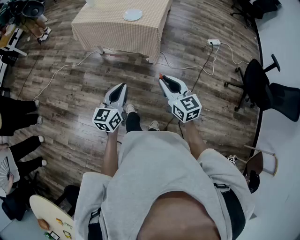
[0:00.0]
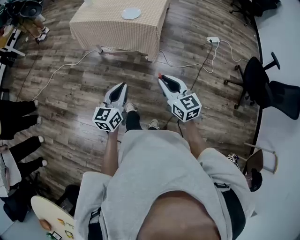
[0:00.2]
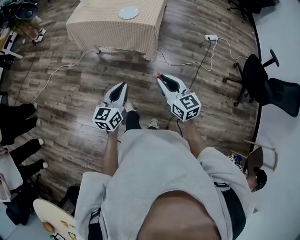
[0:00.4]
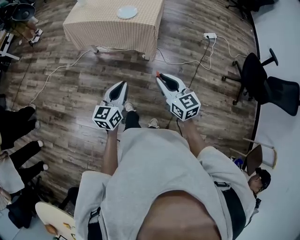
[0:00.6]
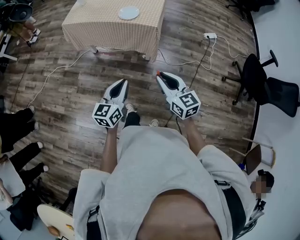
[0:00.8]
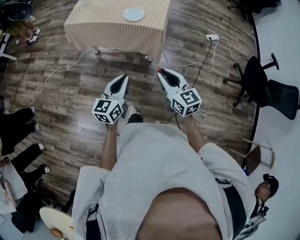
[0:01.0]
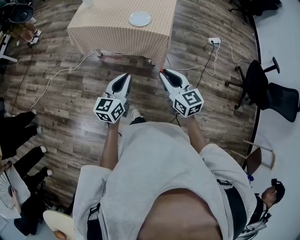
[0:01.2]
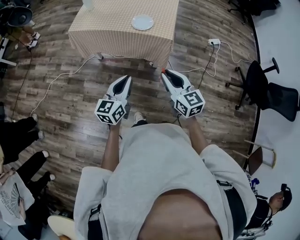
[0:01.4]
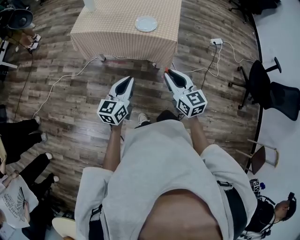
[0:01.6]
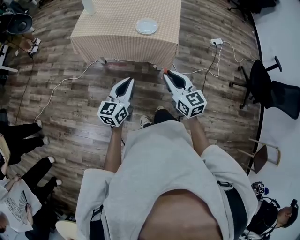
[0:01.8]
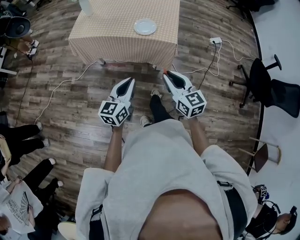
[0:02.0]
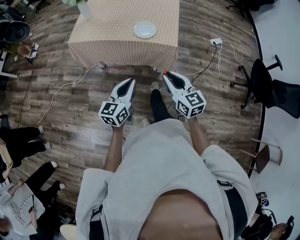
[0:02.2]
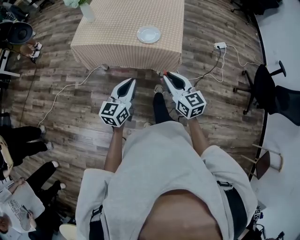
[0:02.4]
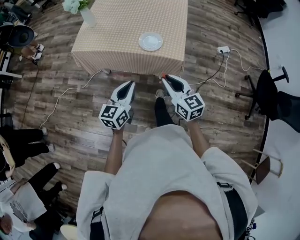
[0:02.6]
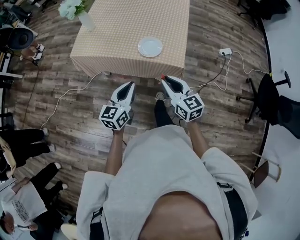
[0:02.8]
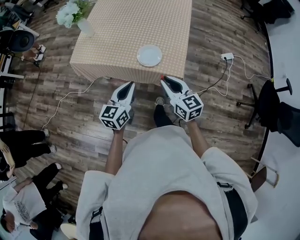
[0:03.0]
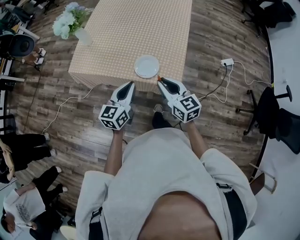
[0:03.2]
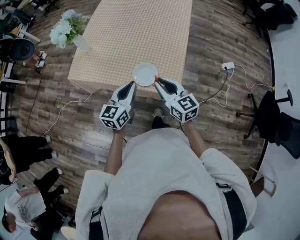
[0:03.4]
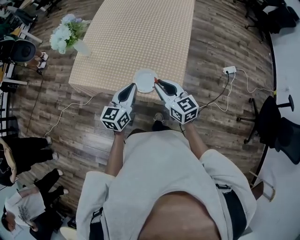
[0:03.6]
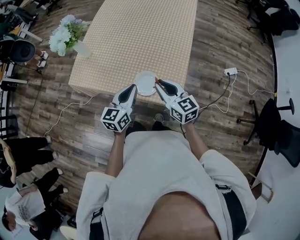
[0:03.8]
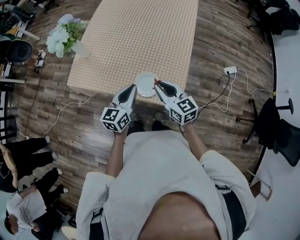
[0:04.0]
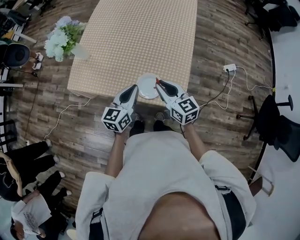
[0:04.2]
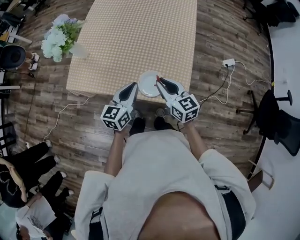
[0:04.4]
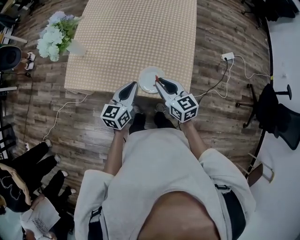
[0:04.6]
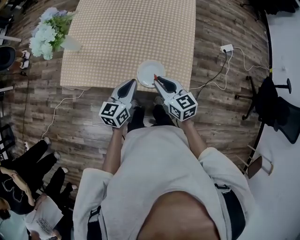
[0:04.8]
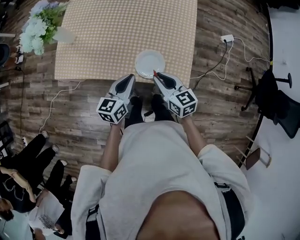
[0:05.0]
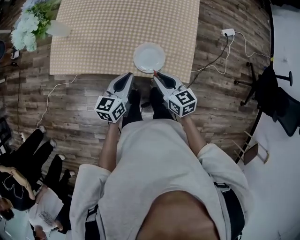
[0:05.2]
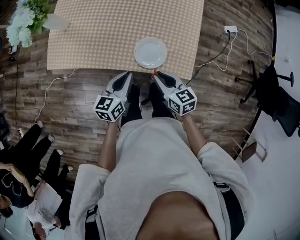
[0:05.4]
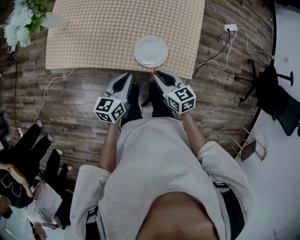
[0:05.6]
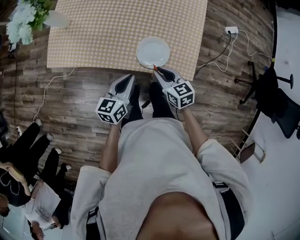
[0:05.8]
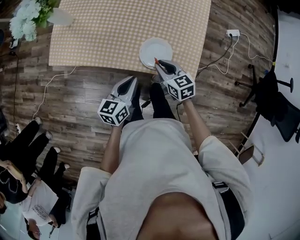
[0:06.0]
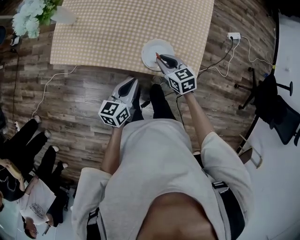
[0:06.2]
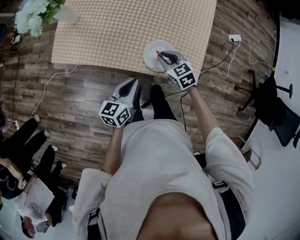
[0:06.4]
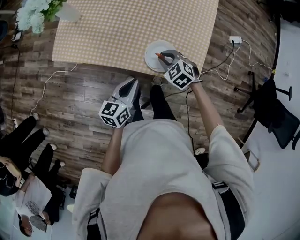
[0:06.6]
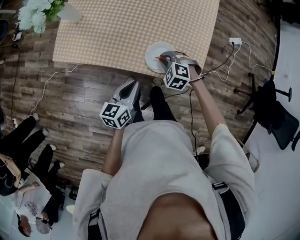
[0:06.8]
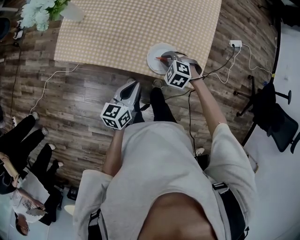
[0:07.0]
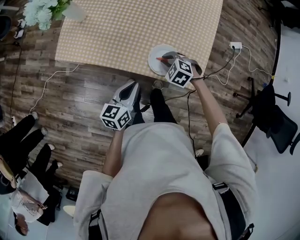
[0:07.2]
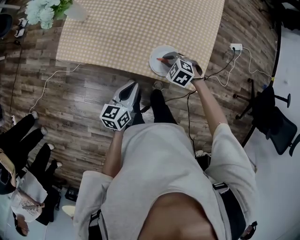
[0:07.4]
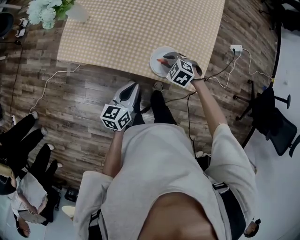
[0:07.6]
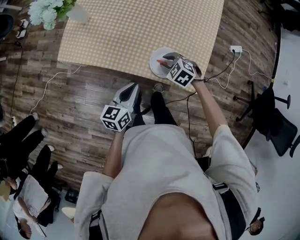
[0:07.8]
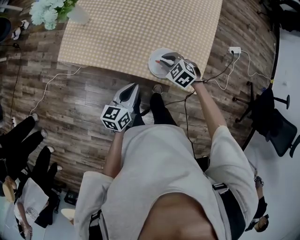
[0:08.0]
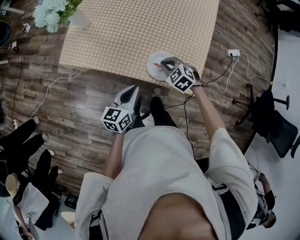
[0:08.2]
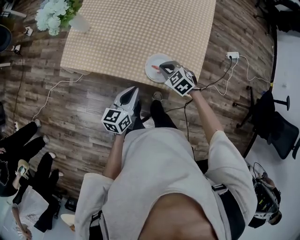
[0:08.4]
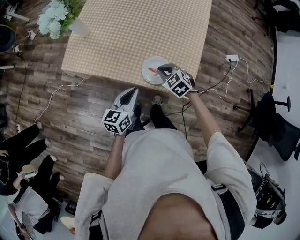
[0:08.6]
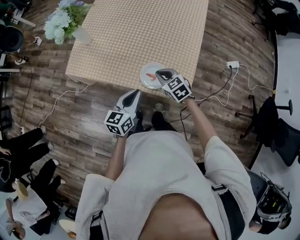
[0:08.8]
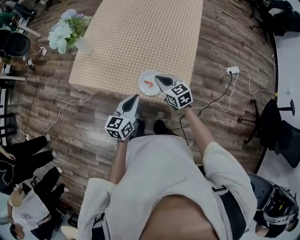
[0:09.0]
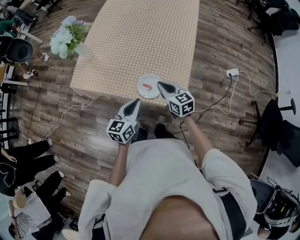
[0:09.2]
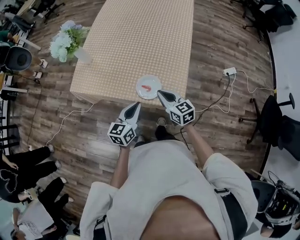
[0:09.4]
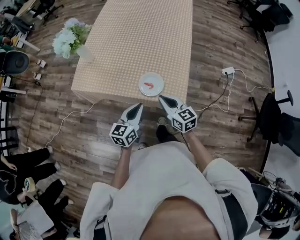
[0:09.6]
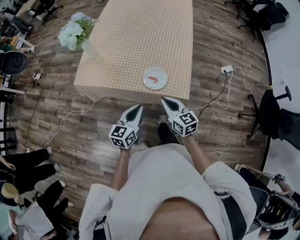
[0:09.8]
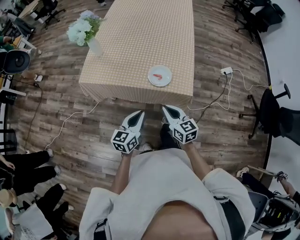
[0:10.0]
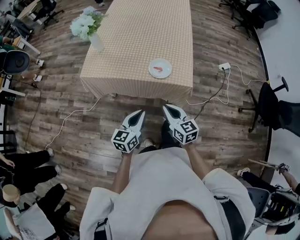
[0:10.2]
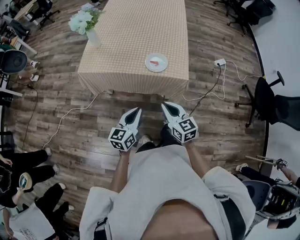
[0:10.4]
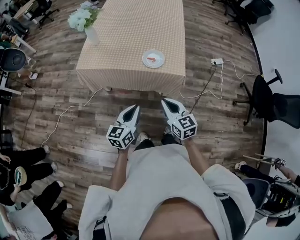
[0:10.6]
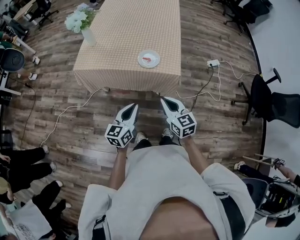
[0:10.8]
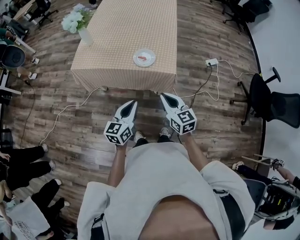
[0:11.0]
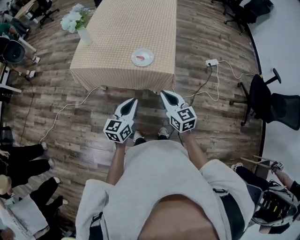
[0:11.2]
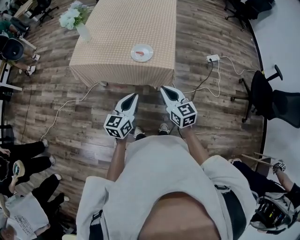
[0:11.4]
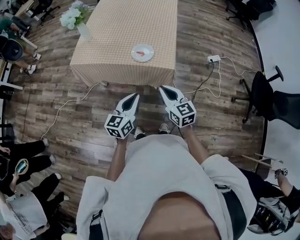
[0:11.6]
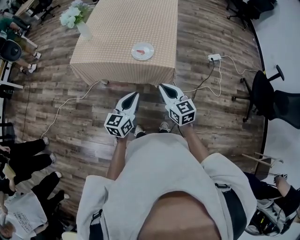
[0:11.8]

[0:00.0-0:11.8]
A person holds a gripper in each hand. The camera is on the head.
0:00.0 to 0:01.4: Both grippers move forward and to the left, approximately 20 cm.
0:01.4 to 0:03.0: Both grippers travel together forward, some 25 cm.
0:03.0 to 0:04.4: The two grippers go roughly 20 cm forward.
0:04.4 to 0:06.0: The right gripper travels downward by about 15 cm, and changes its angle by some 20 degrees; the left gripper is displaced downward and backward by about 15 cm.
0:06.0 to 0:07.4: The right gripper ends up about 5 cm from where it was, and rolls counterclockwise, seen from behind, by approximately 50 degrees.
0:07.4 to 0:08.8: The left gripper shifts approximately 10 cm upward and to the right, while the right gripper travels upward by some 10 cm, and turns by some 30 degrees.
0:08.8 to 0:10.4: The grippers both shift backward by roughly 30 cm. The right gripper changes its angle by about 40 degrees.
0:10.4 to 0:11.8: The two grippers go approximately 10 cm to the right.

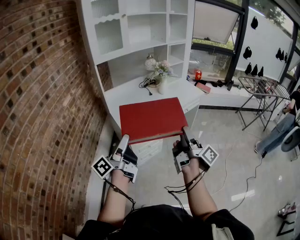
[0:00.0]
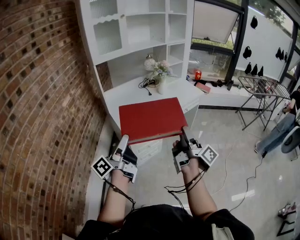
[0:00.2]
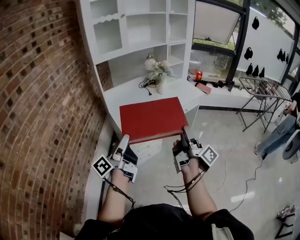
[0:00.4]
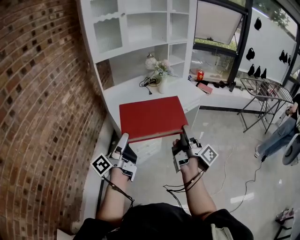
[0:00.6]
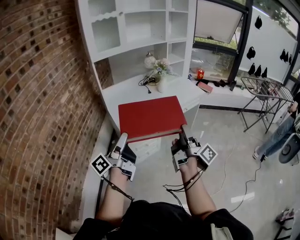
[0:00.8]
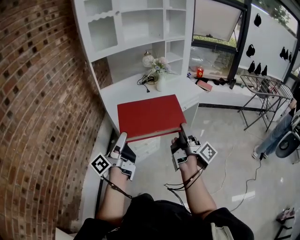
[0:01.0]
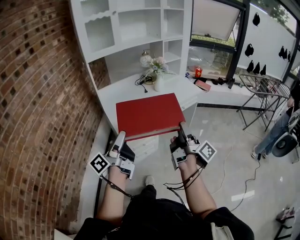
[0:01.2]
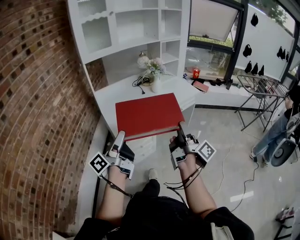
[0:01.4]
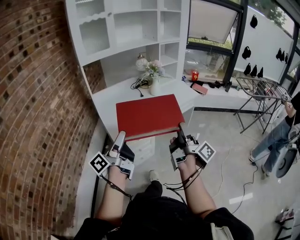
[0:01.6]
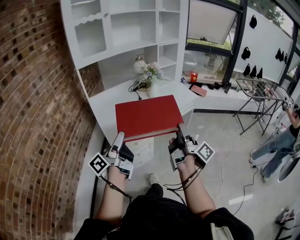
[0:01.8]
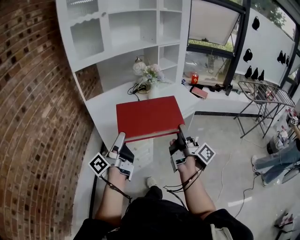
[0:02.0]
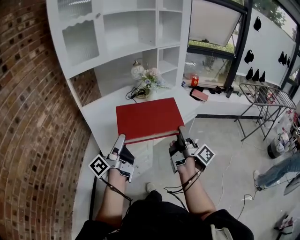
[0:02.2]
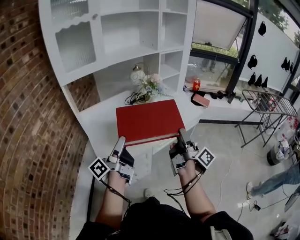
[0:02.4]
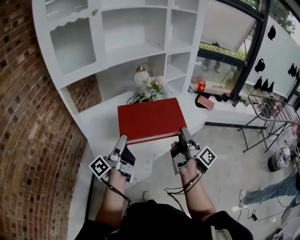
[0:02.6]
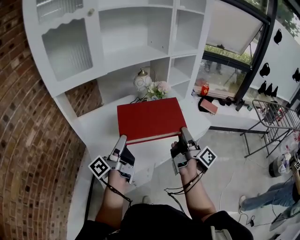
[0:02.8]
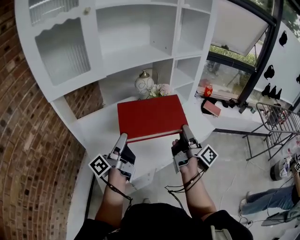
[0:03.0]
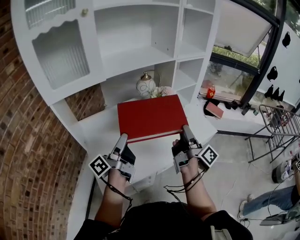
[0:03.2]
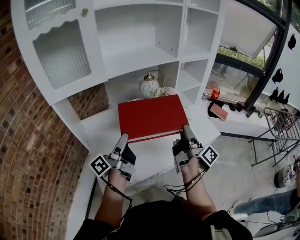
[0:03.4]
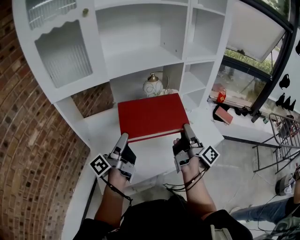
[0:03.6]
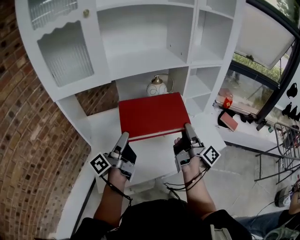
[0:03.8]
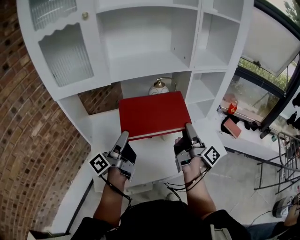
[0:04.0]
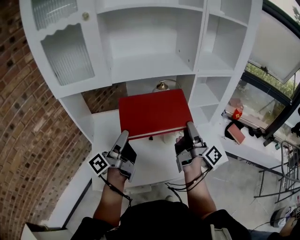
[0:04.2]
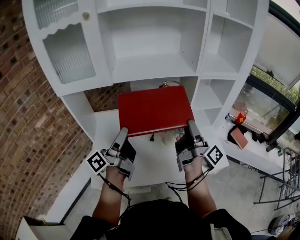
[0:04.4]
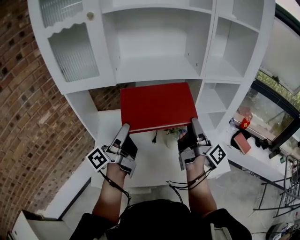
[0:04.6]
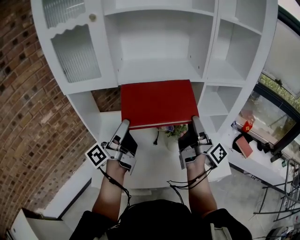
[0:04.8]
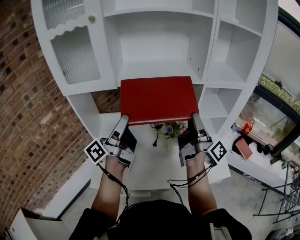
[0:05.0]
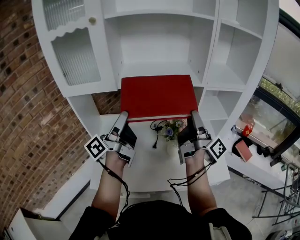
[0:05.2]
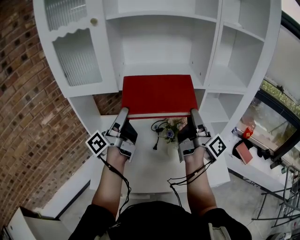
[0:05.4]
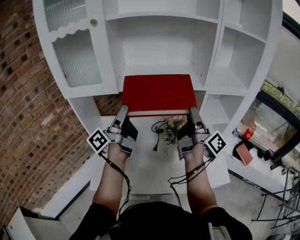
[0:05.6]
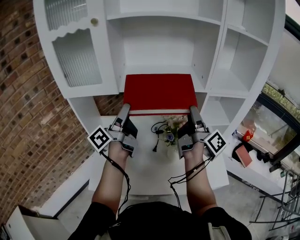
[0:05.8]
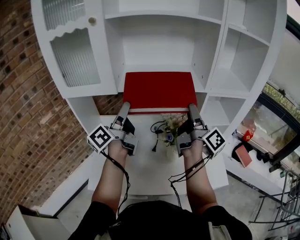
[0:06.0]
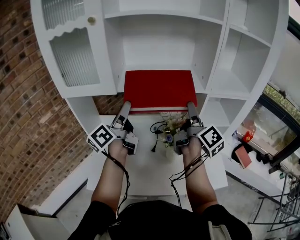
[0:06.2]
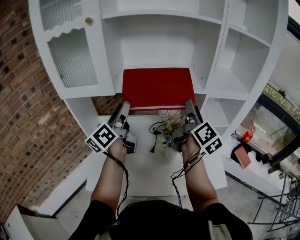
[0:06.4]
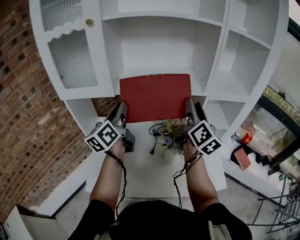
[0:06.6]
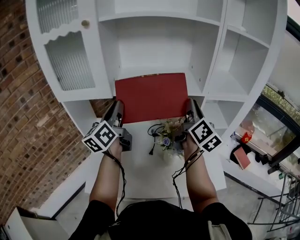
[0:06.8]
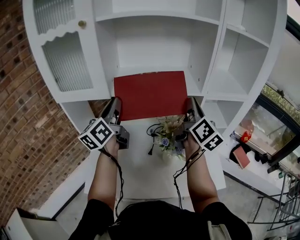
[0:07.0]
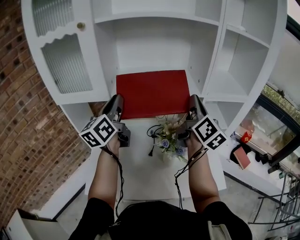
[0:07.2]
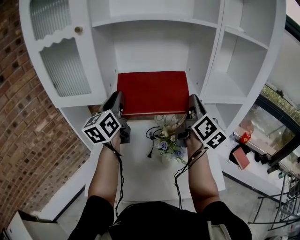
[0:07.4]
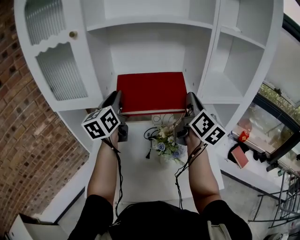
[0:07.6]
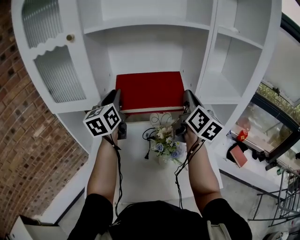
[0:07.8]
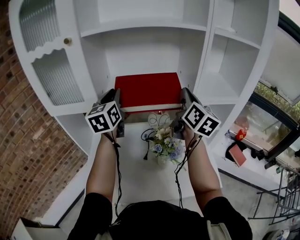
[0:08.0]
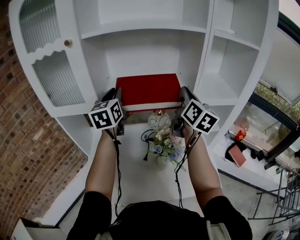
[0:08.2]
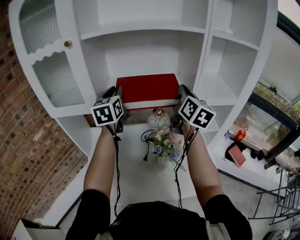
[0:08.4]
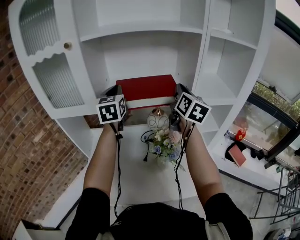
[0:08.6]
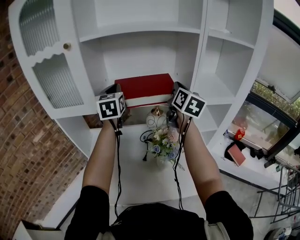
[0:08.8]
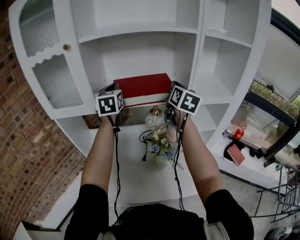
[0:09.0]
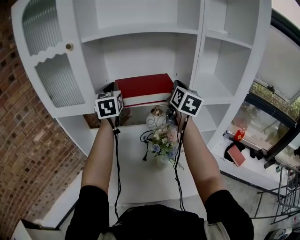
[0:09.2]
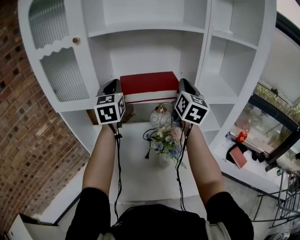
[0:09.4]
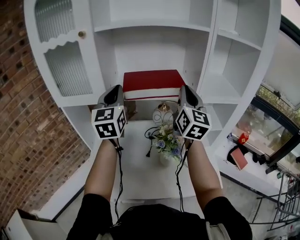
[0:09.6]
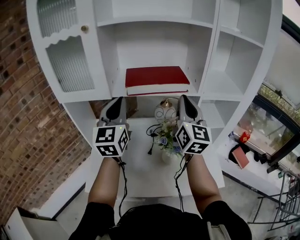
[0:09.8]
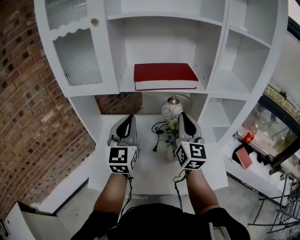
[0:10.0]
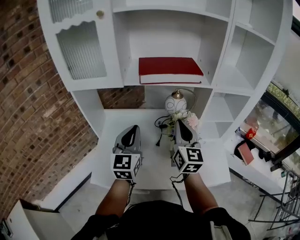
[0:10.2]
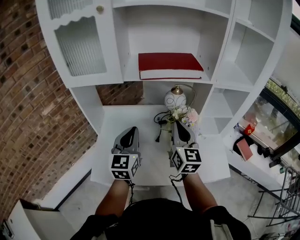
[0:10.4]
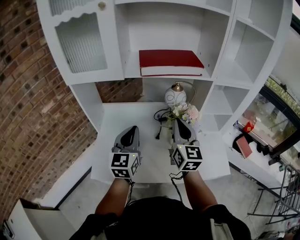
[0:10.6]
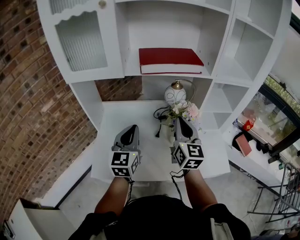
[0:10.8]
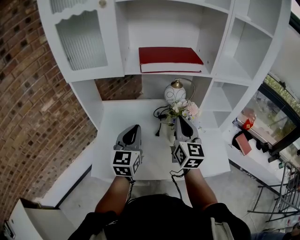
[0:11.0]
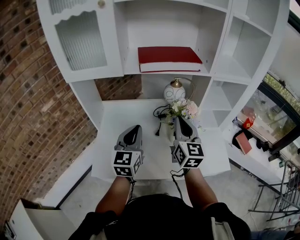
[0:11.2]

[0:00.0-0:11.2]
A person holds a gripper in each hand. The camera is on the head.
0:00.0 to 0:01.6: Both grippers move to the right and forward, roughly 10 cm.
0:01.6 to 0:03.2: Both grippers are carried forward, some 50 cm.
0:03.2 to 0:04.8: The right gripper moves forward and upward, roughly 20 cm, and turns by roughly 30 degrees, while the left gripper is displaced upward and forward by some 10 cm, and turns by roughly 30 degrees.
0:04.8 to 0:06.4: The right gripper goes approximately 10 cm forward and upward, and rotates roughly 40 degrees. The left gripper is displaced forward by approximately 10 cm, and turns by approximately 30 degrees.
0:06.4 to 0:08.0: The left gripper moves forward and upward, roughly 10 cm, turns by approximately 40 degrees, and closes. The right gripper moves upward and forward, some 10 cm, turns by some 20 degrees, and closes up.
0:08.0 to 0:09.6: The left gripper travels backward by some 5 cm, while the right gripper swivels approximately 20 degrees.
0:09.6 to 0:11.2: The left gripper moves downward and backward, some 25 cm, while the right gripper is displaced downward, backward and to the left by some 25 cm.

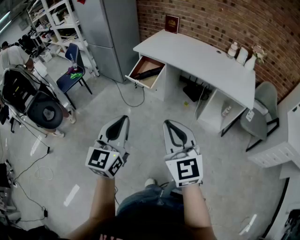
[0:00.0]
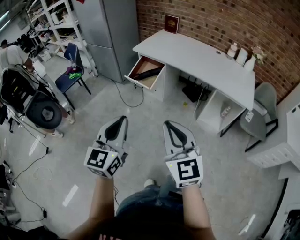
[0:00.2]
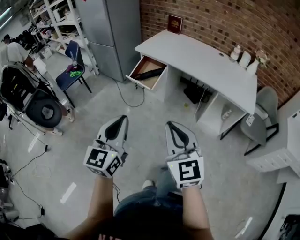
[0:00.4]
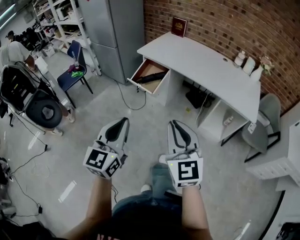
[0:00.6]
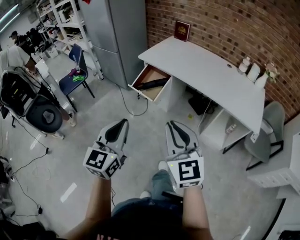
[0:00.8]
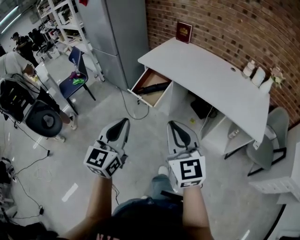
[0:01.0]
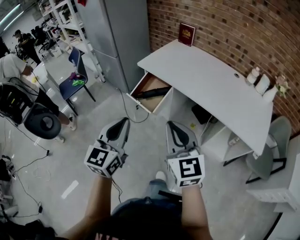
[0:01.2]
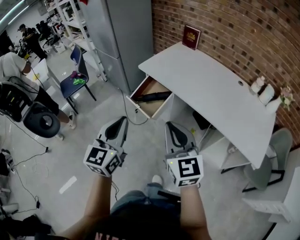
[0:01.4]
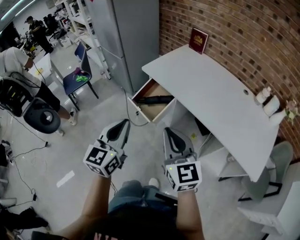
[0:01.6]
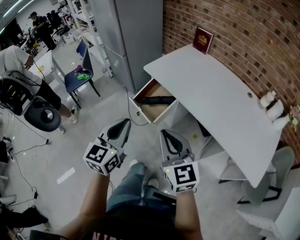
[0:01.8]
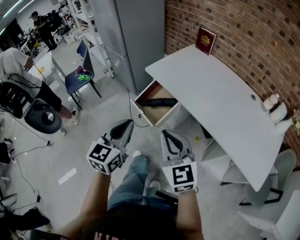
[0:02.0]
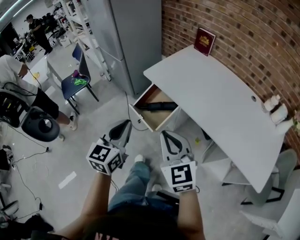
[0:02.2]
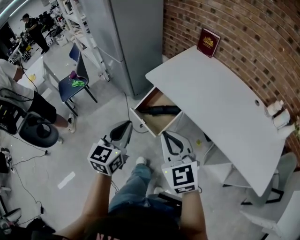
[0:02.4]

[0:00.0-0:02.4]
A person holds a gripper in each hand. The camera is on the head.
0:00.0 to 0:01.2: The grippers both shift forward by some 25 cm.
0:01.2 to 0:02.4: The two grippers go about 25 cm forward.
